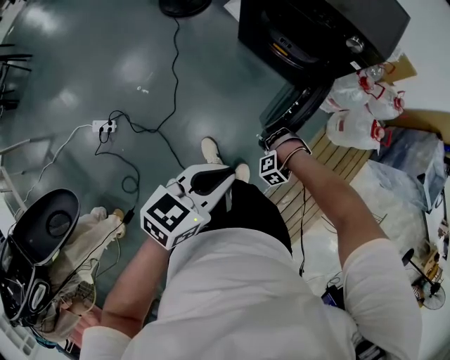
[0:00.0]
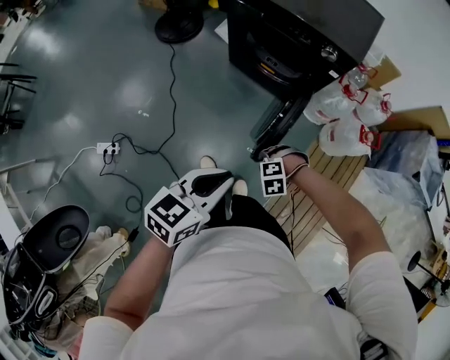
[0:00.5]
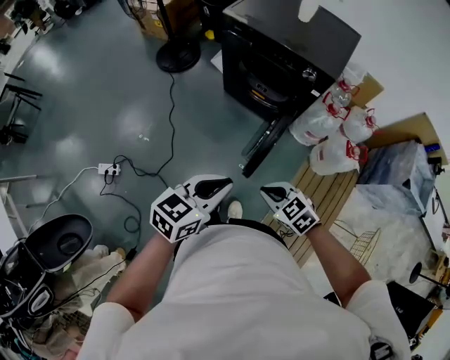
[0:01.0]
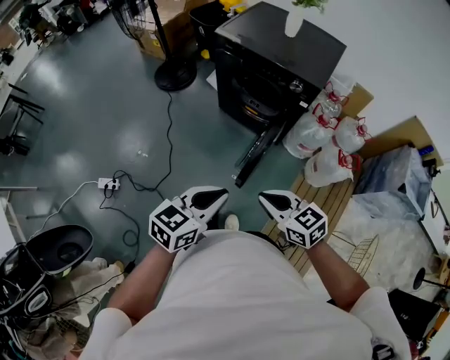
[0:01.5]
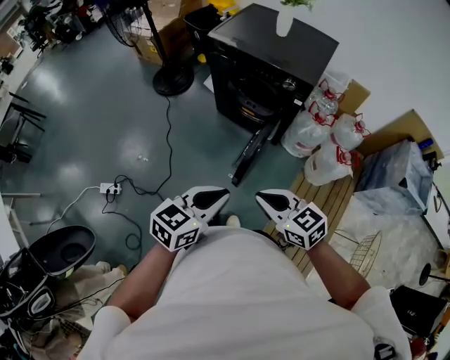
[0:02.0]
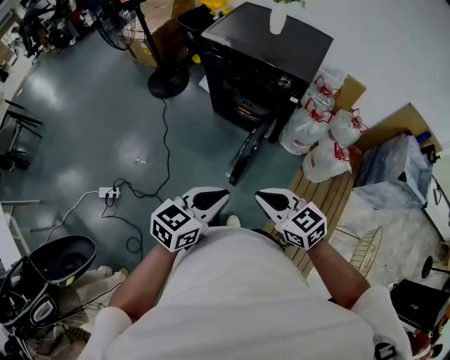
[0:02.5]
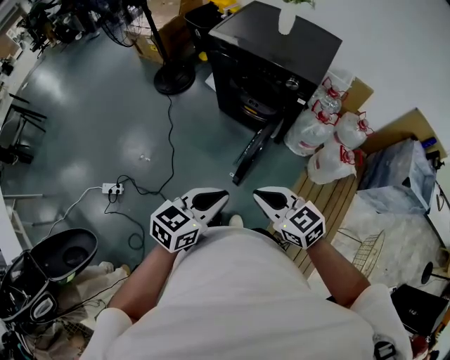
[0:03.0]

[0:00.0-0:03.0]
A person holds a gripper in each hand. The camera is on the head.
0:00.0 to 0:01.5: The left gripper moves upward, approximately 10 cm.

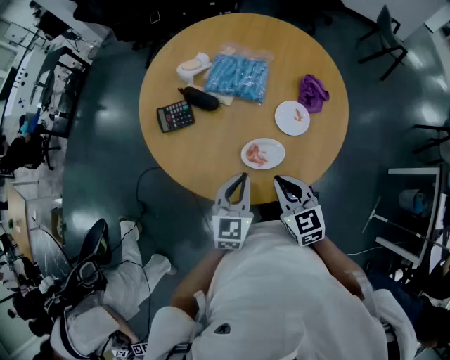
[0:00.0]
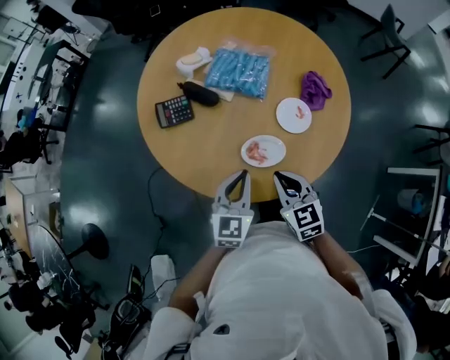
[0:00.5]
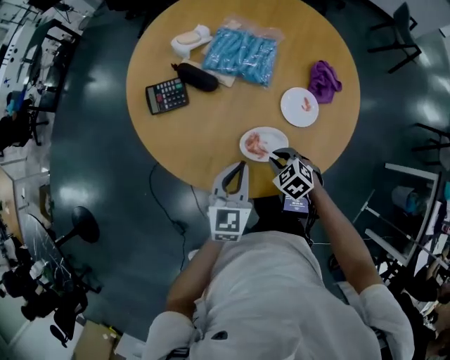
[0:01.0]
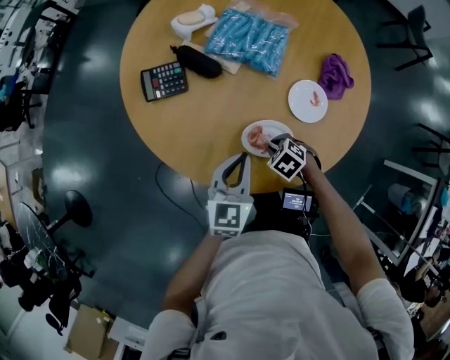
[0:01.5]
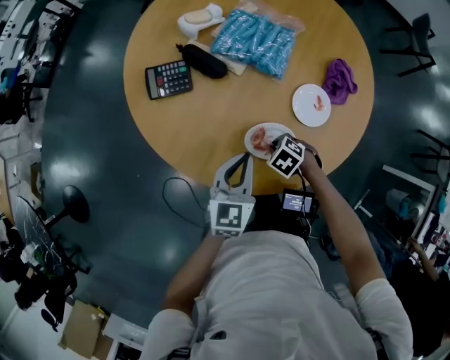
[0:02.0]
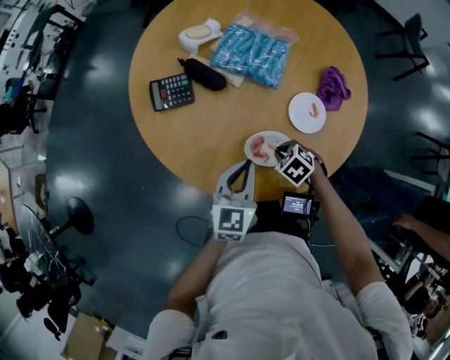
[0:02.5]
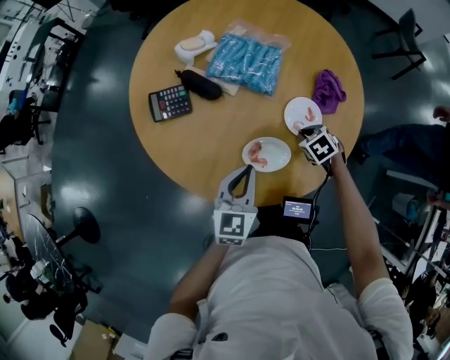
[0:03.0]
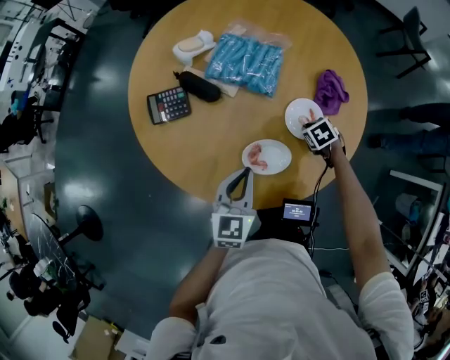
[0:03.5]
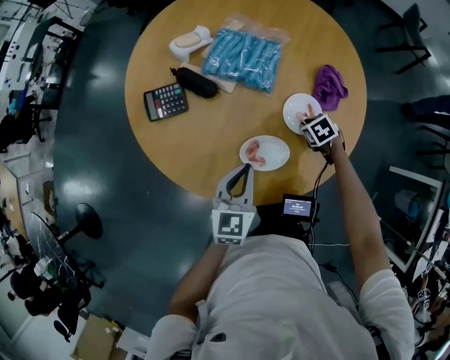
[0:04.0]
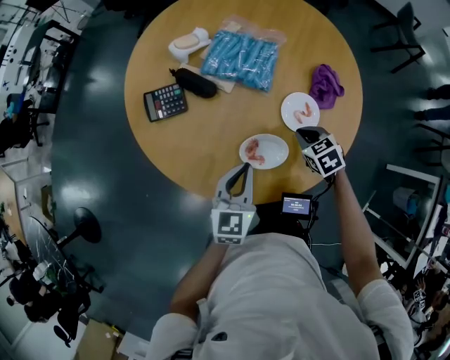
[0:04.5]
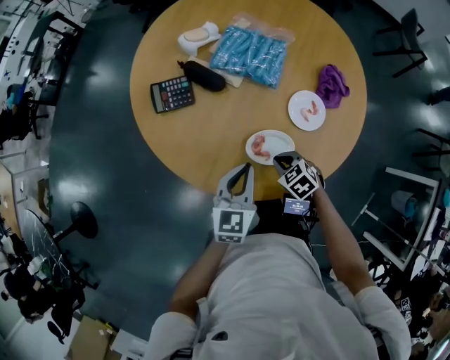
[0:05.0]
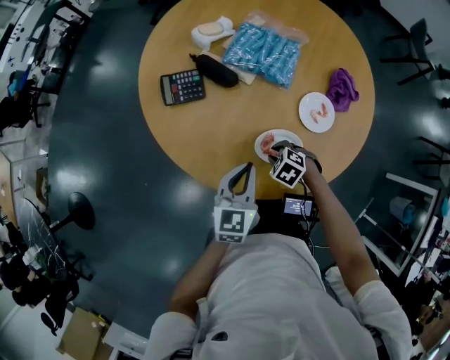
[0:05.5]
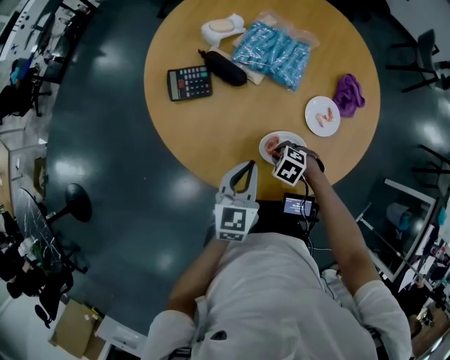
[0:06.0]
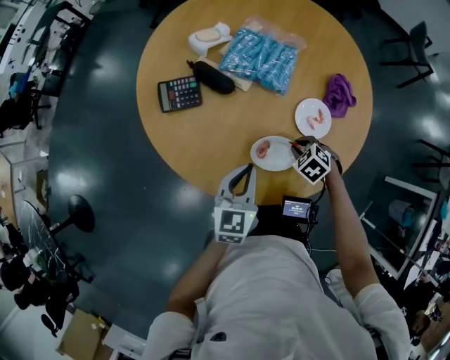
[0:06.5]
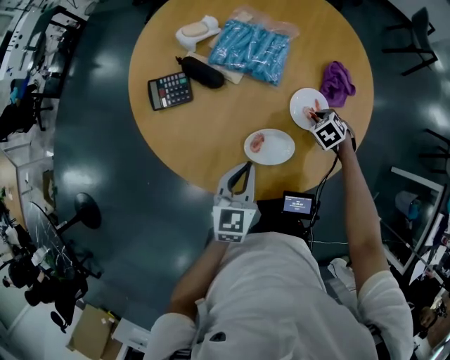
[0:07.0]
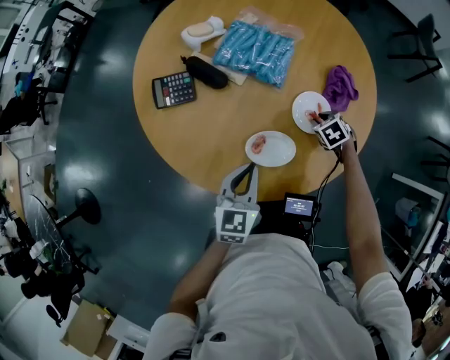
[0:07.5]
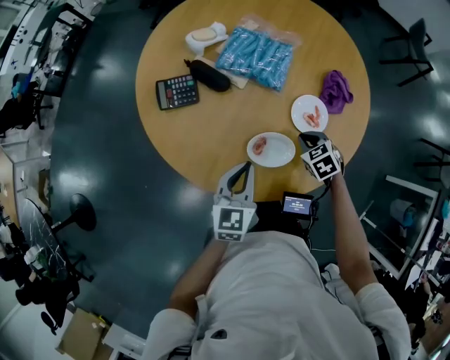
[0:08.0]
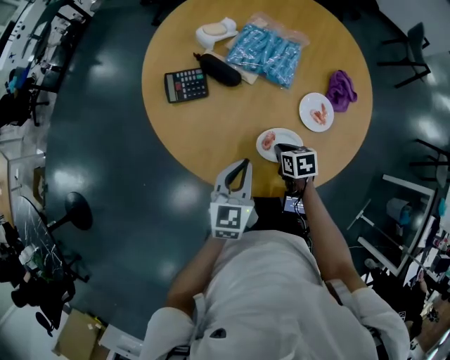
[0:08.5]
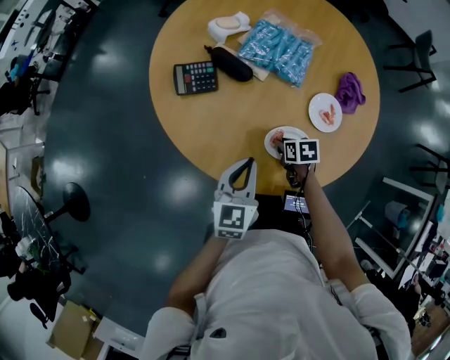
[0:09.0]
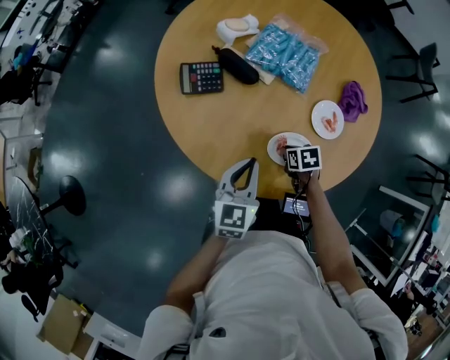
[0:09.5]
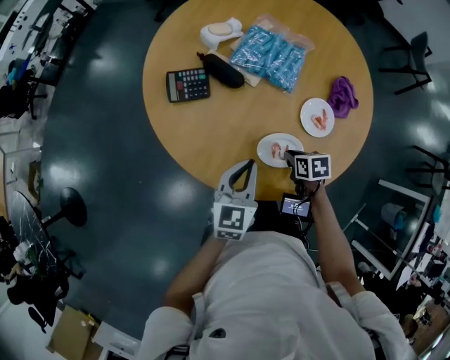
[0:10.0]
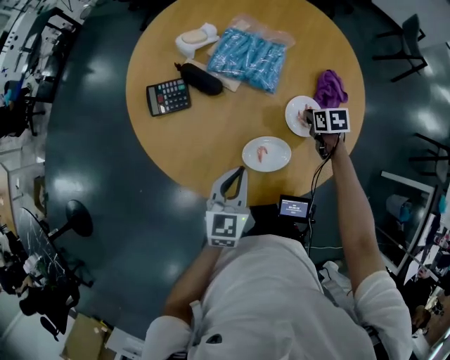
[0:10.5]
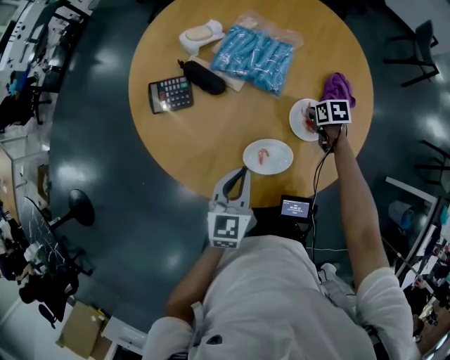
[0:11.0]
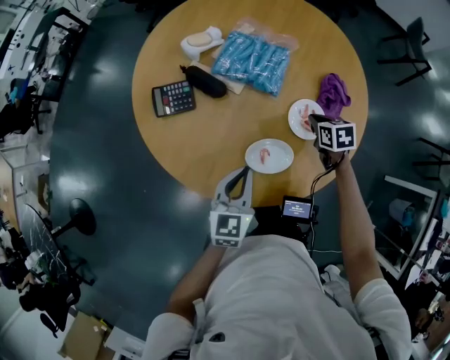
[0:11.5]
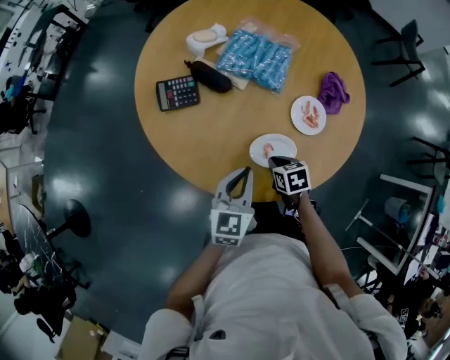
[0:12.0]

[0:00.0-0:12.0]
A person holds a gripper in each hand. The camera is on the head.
0:00.0 to 0:02.0: The left gripper is displaced downward by roughly 5 cm; the right gripper shifts some 25 cm downward, and tips its fingers downward by about 50 degrees.
0:02.0 to 0:04.0: The right gripper ends up roughly 20 cm from where it was, and rotates about 30 degrees.
0:04.0 to 0:06.0: The left gripper moves approximately 5 cm, while the right gripper travels upward and back again, some 10 cm each way, and swivels roughly 40 degrees.
0:06.0 to 0:08.0: The right gripper rotates about 30 degrees.
0:08.0 to 0:10.0: The right gripper goes some 5 cm to the left, and turns by about 40 degrees.
0:10.0 to 0:12.0: The right gripper reaches about 15 cm to the right, then returns.

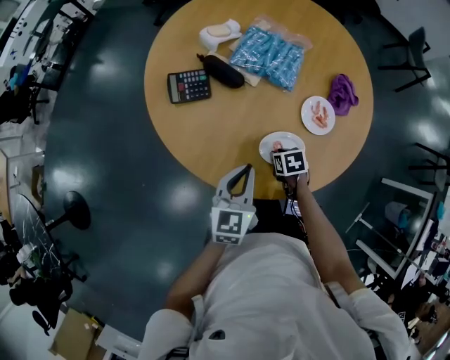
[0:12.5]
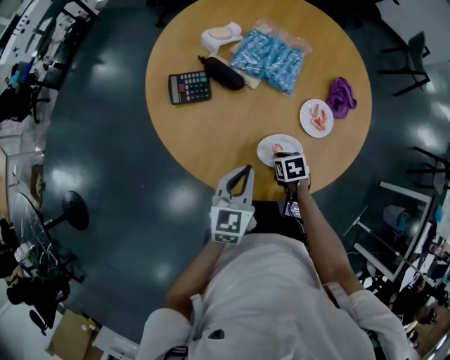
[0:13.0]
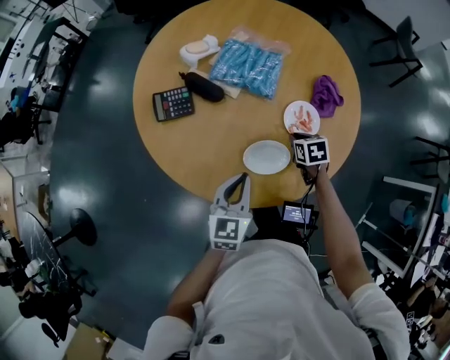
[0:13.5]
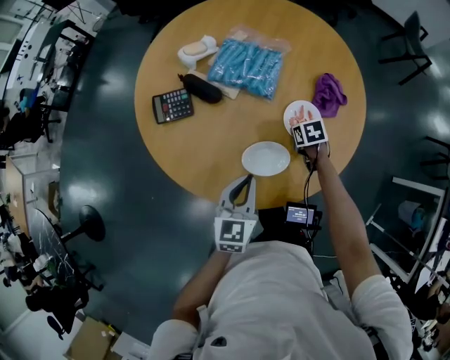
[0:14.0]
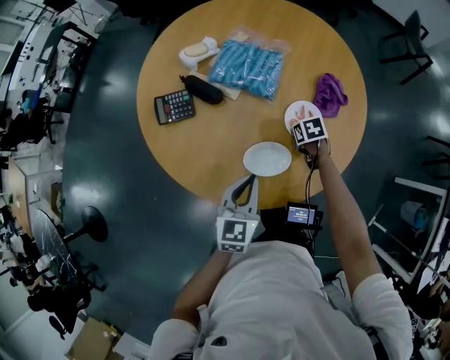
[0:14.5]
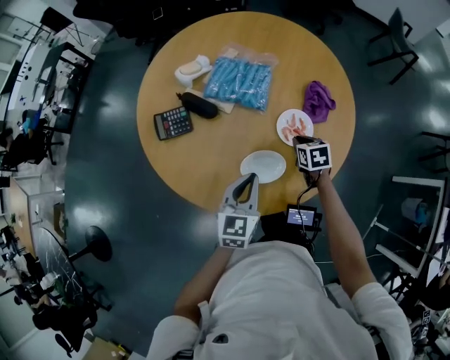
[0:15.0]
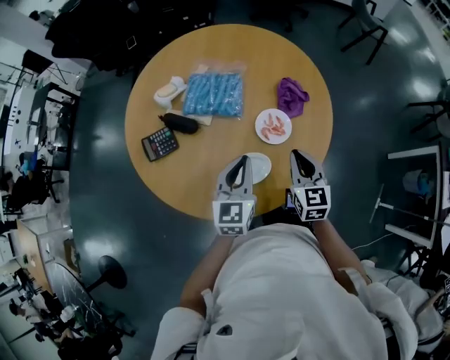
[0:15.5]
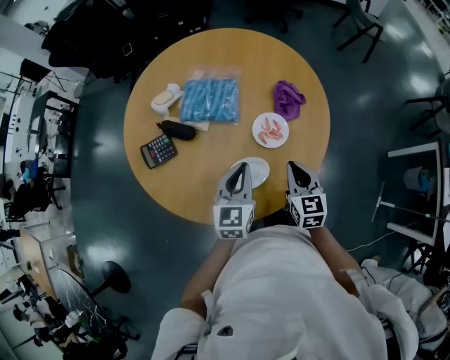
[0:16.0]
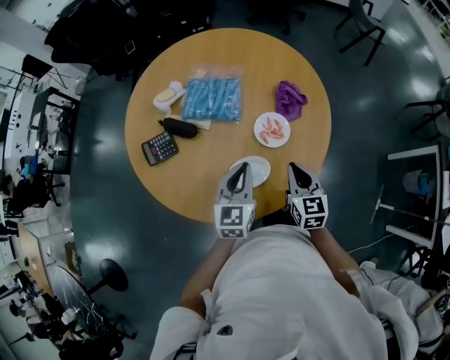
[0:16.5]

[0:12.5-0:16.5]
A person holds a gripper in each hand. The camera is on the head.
0:12.5 to 0:14.5: The left gripper heads to the right, covering about 10 cm; the right gripper moves to the right and forward, roughly 15 cm.
0:14.5 to 0:16.5: The left gripper shifts by some 10 cm, while the right gripper heads upward, covering some 20 cm, and tilts its fingers some 40 degrees upward.

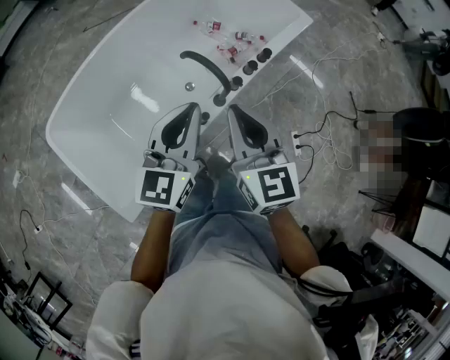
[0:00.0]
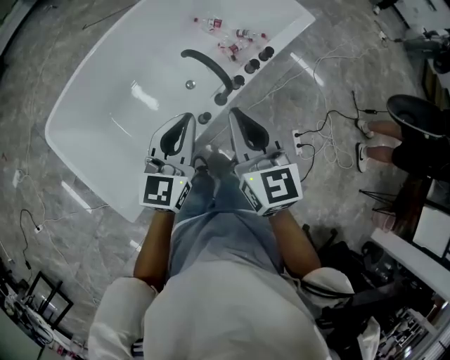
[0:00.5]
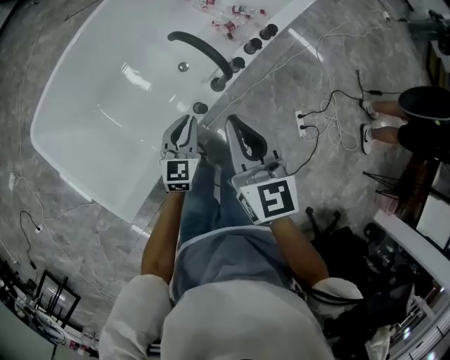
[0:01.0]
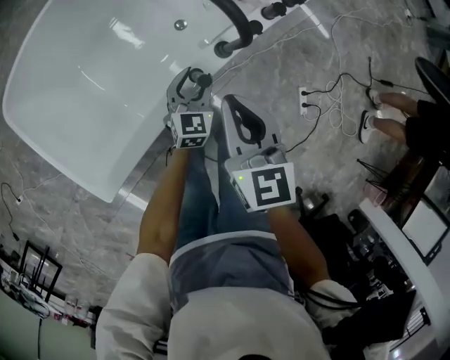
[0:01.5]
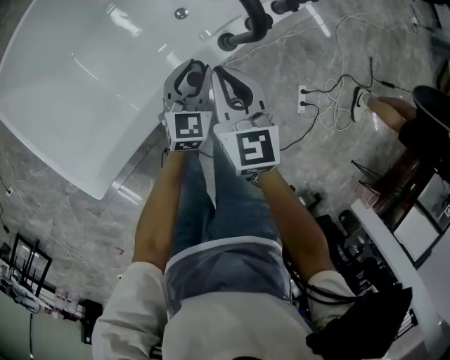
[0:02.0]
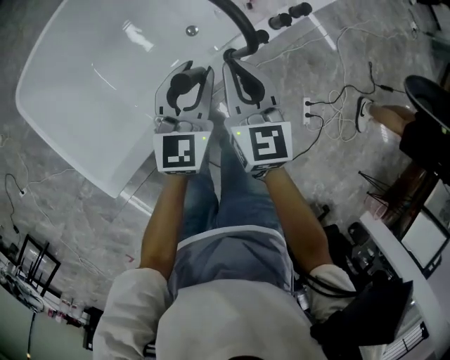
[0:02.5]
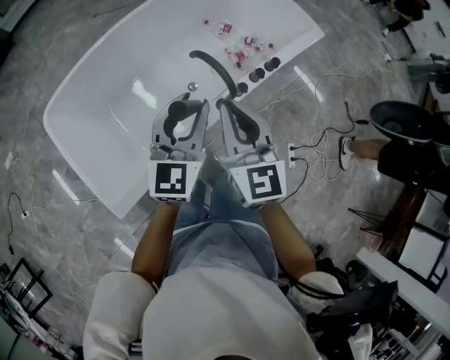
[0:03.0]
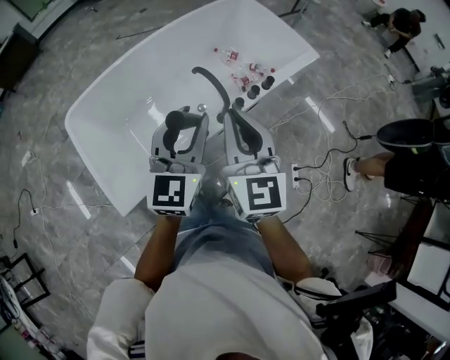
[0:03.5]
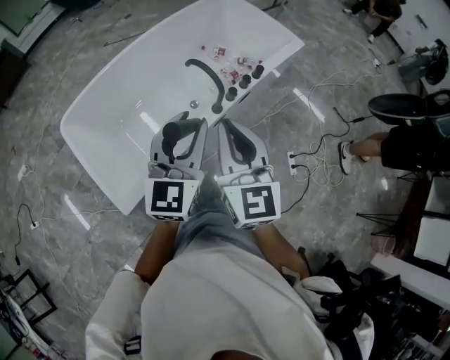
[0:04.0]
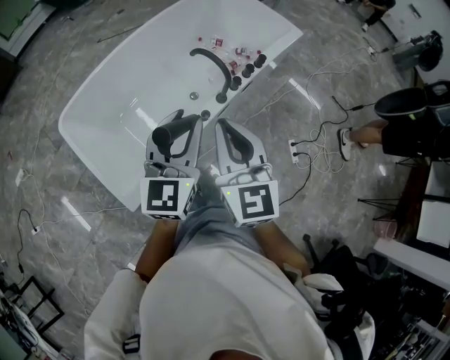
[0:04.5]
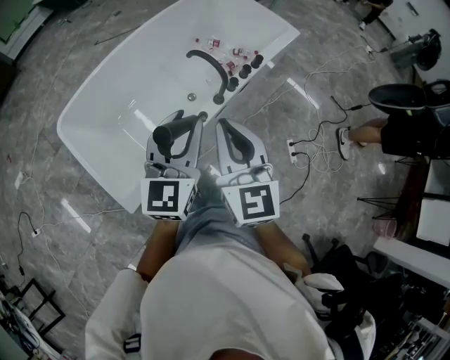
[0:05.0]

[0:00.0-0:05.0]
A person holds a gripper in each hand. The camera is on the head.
0:00.0 to 0:02.5: The grippers both shift downward by approximately 30 cm. The left gripper opens up.
0:02.5 to 0:05.0: The two grippers go approximately 50 cm upward.

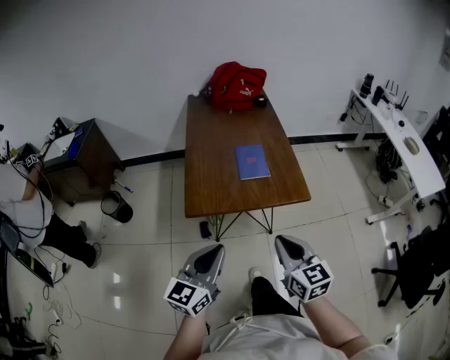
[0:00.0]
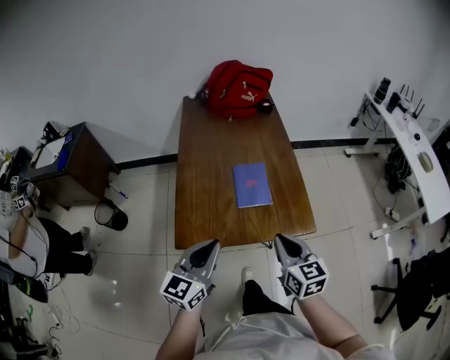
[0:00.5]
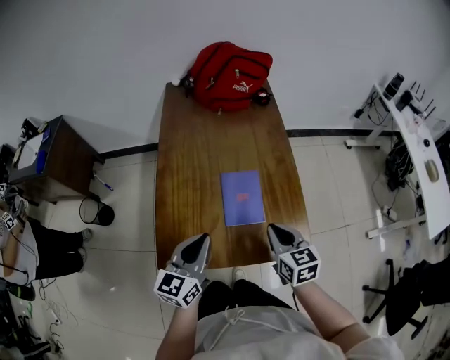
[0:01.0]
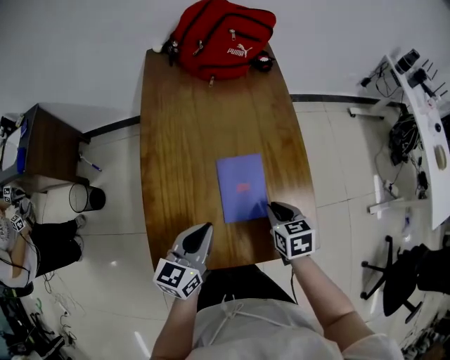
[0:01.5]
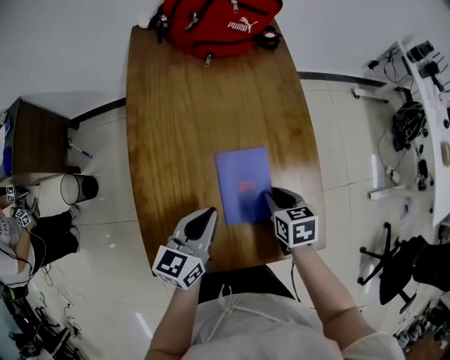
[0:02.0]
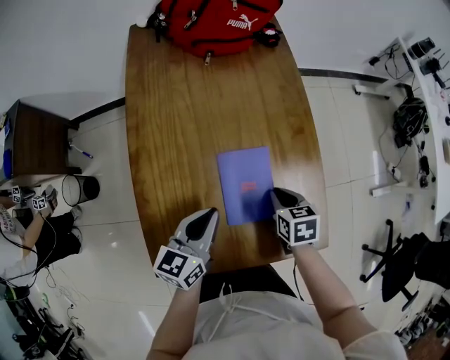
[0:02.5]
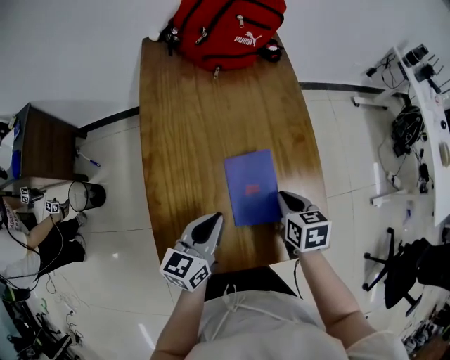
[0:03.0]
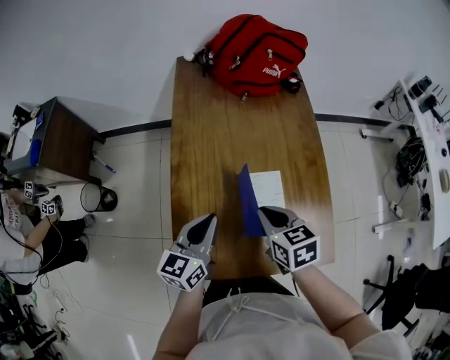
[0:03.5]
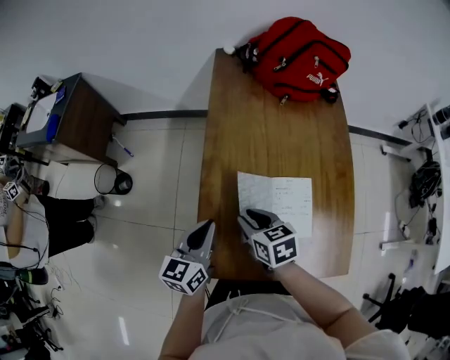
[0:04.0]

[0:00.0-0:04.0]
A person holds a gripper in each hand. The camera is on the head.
0:00.0 to 0:02.0: The pair of grippers is taken forward, some 50 cm. The right gripper moves downward, roughly 25 cm, and angles its fingers downward, by roughly 40 degrees. The left gripper turns by roughly 20 degrees.
0:02.0 to 0:04.0: The right gripper shifts by roughly 30 cm, and rotates some 20 degrees; the left gripper changes place by approximately 20 cm.
